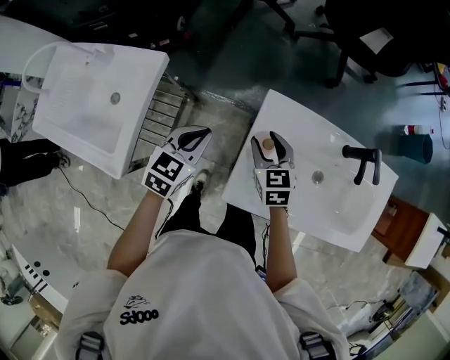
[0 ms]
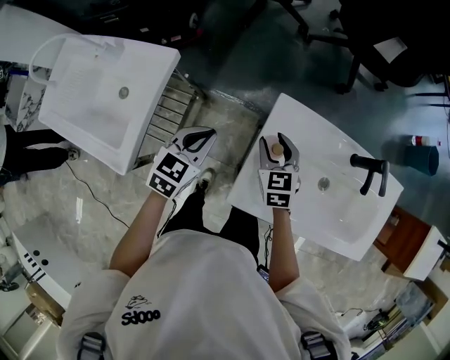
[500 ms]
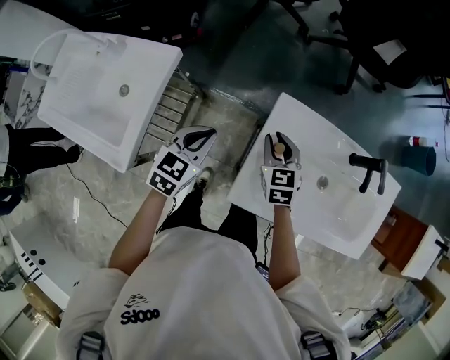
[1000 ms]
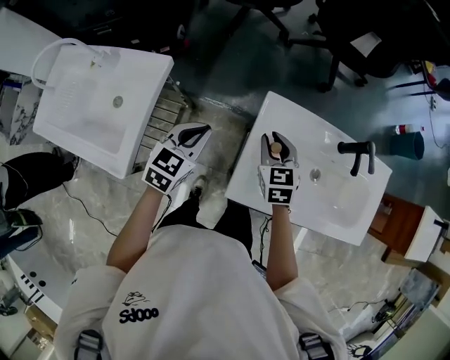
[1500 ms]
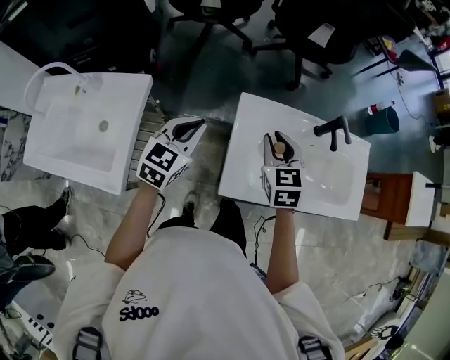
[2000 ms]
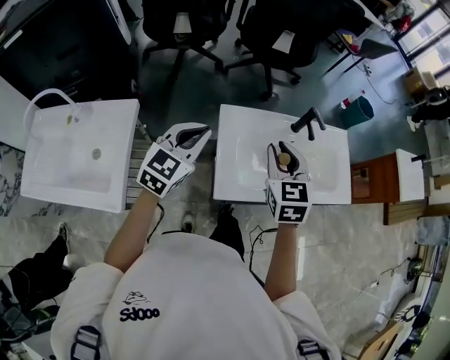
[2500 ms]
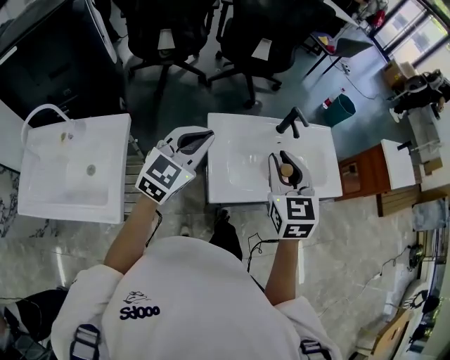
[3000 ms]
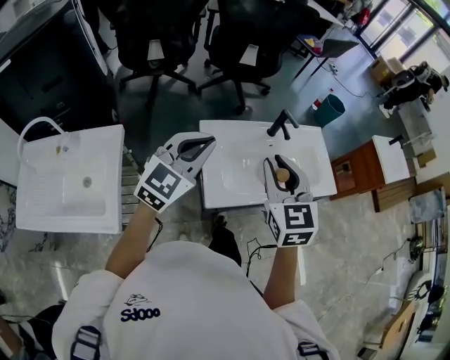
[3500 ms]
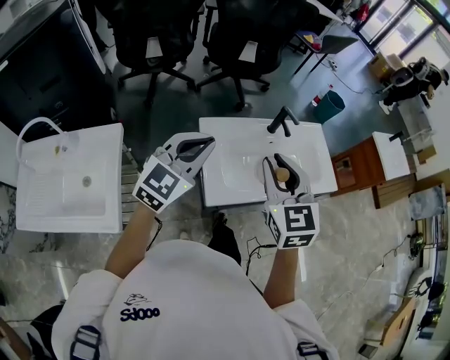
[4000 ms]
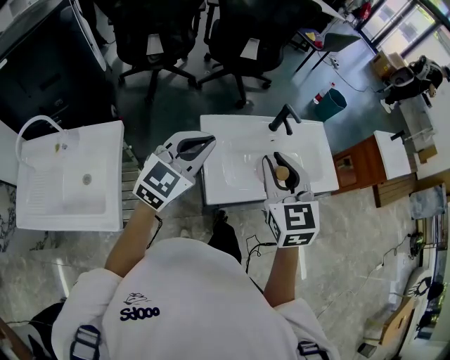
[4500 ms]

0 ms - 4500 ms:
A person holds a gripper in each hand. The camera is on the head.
0 ms - 2000 ms: The right gripper moves upward and to the right, approximately 15 cm, and closes. The left gripper is displaced upward by approximately 10 cm.
2000 ms - 4500 ms: The left gripper goes approximately 20 cm upward and to the right, and rotates about 30 degrees; the right gripper is displaced upward, backward and to the right by approximately 20 cm.

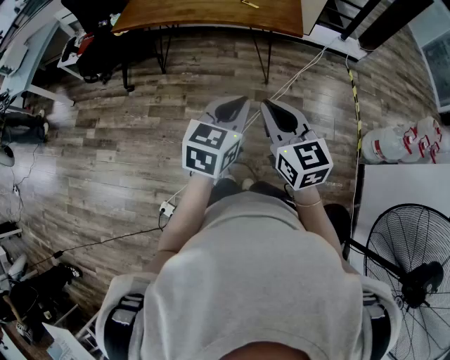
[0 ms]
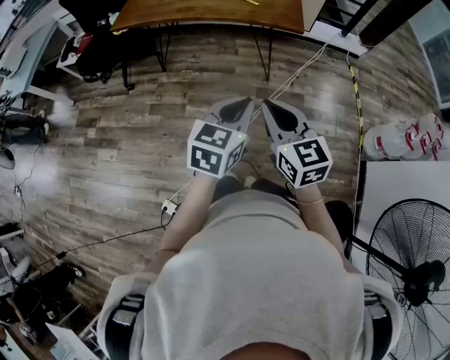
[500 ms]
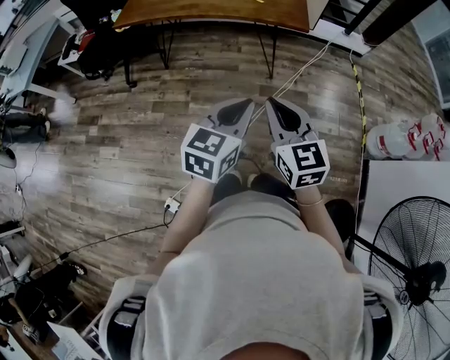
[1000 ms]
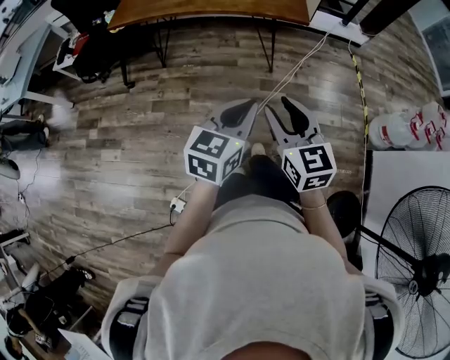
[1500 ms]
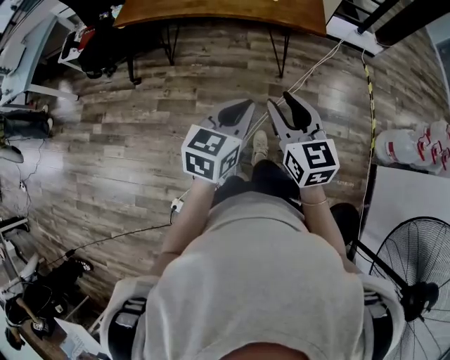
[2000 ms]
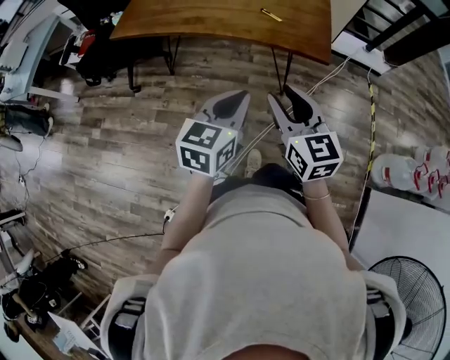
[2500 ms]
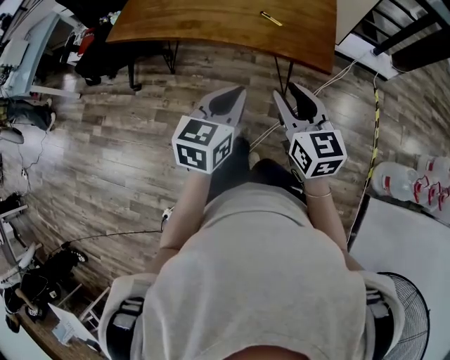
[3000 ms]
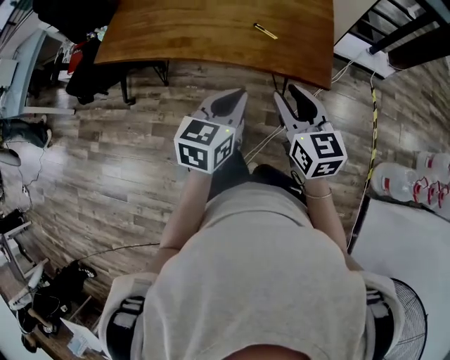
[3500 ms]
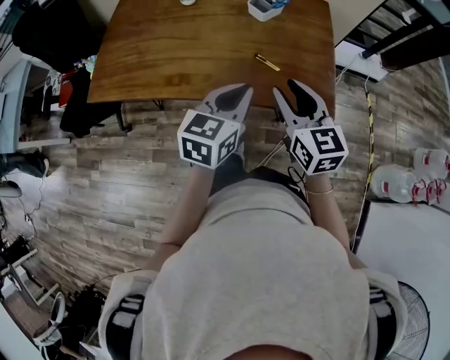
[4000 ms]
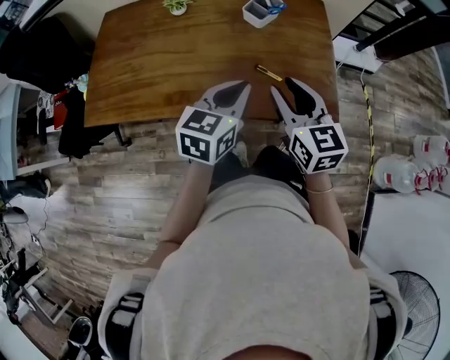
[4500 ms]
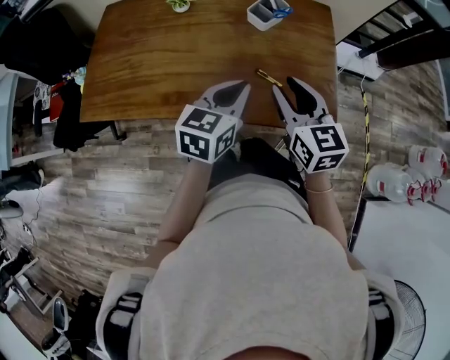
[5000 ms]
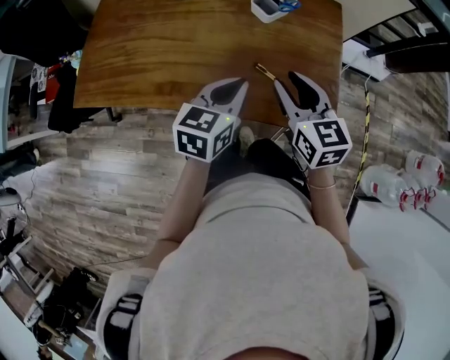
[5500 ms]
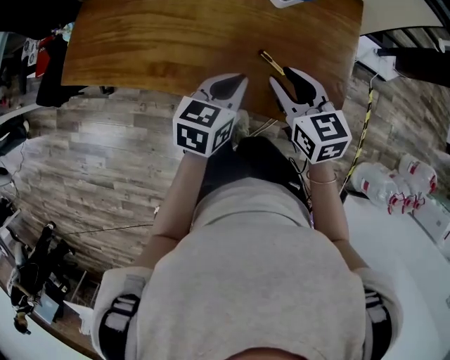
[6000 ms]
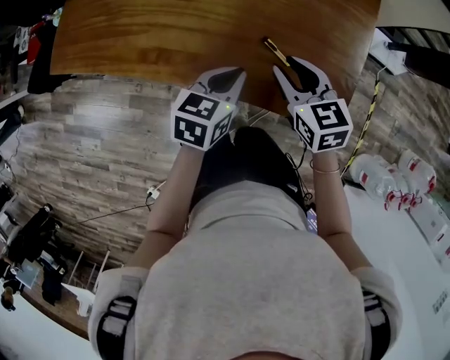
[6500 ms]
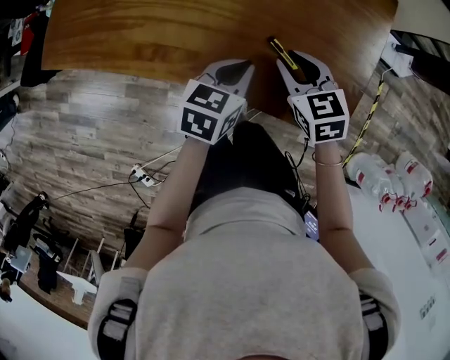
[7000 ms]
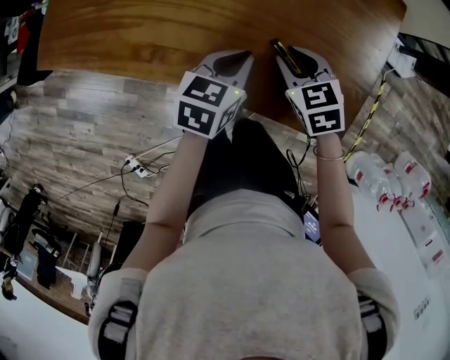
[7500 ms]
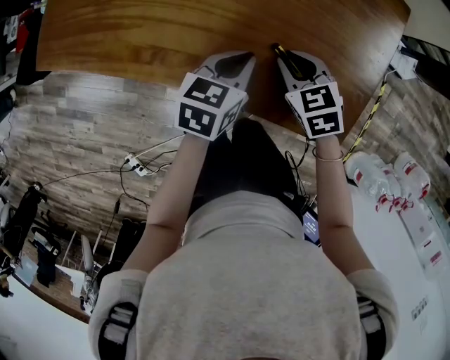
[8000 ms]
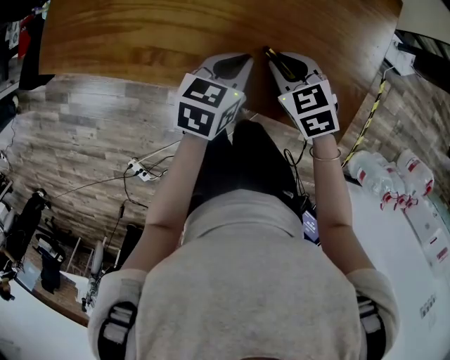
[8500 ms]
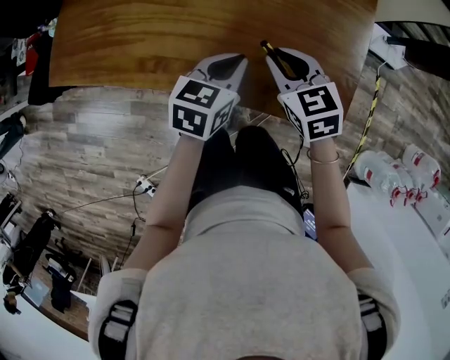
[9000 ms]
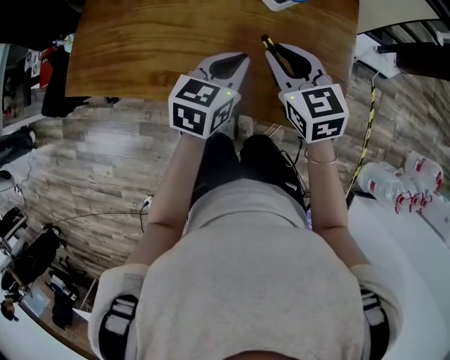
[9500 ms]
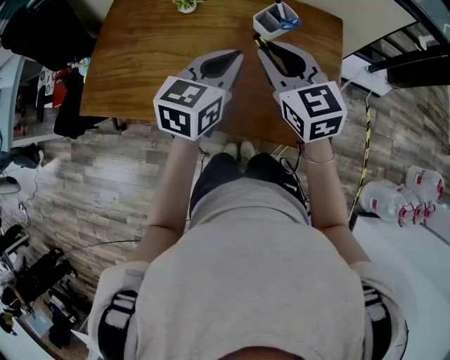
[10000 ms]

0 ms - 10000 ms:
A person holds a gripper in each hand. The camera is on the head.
0 ms - 2000 ms: The right gripper moves forward, roughly 10 cm, and opens up. Meanwhile the left gripper moves forward and to the left, about 10 cm.
2000 ms - 4000 ms: Both grippers are carried forward, approximately 40 cm.
4000 ms - 6000 ms: Both grippers travel together forward and downward, some 15 cm. The right gripper swivels about 20 degrees.
6000 ms - 8000 ms: The right gripper travels downward by approximately 15 cm, and rotates approximately 30 degrees. The left gripper travels downward and forward by about 10 cm.
8000 ms - 10000 ms: Both grippers move upward, roughly 25 cm. The right gripper tilts its fingers roughly 40 degrees upward. The left gripper turns by some 30 degrees.

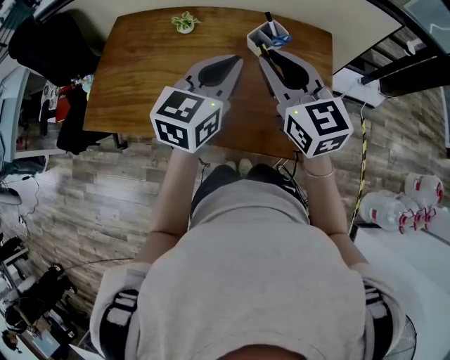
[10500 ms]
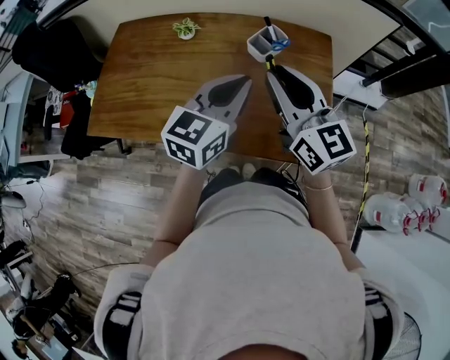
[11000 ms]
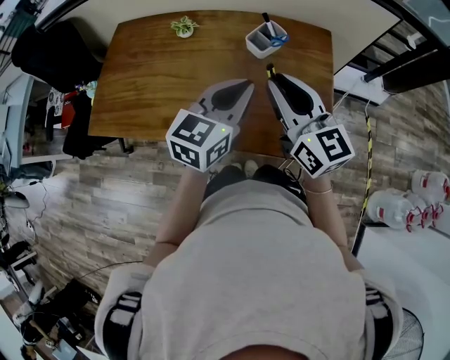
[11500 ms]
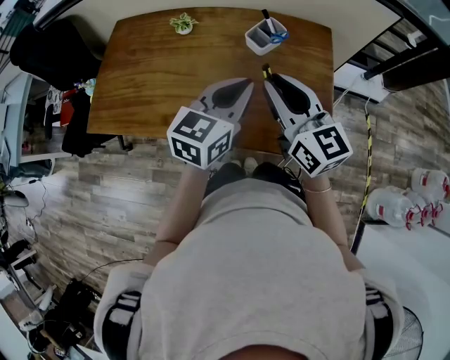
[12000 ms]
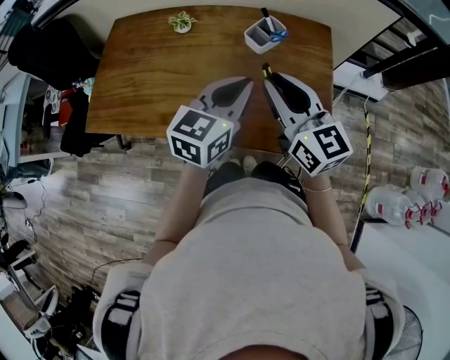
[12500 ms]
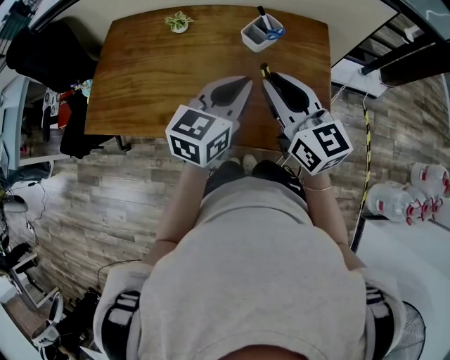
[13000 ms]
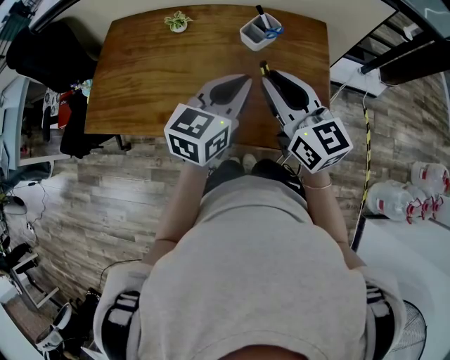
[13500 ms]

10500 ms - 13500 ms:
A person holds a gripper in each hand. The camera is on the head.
10500 ms - 12000 ms: The right gripper changes place by roughly 5 cm; the left gripper ends up some 5 cm from where it was.
12000 ms - 13500 ms: Both grippers stay put.

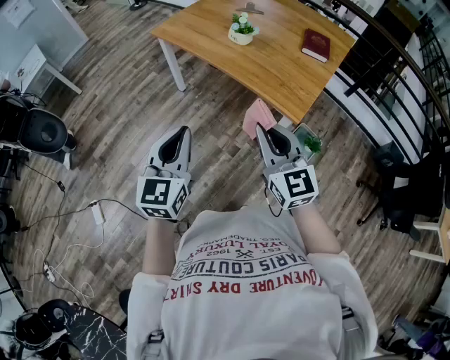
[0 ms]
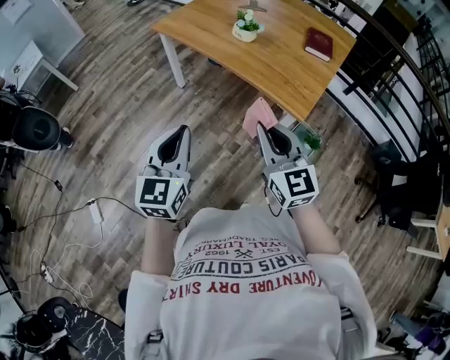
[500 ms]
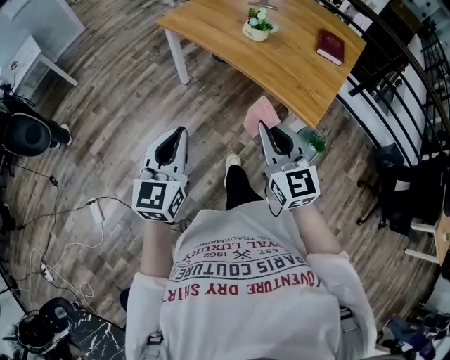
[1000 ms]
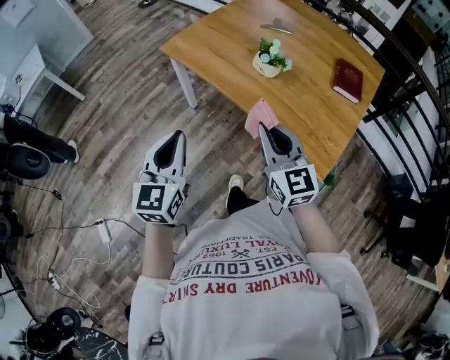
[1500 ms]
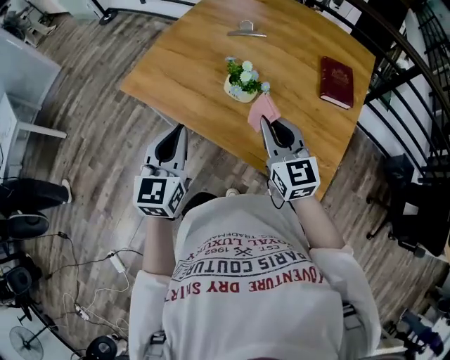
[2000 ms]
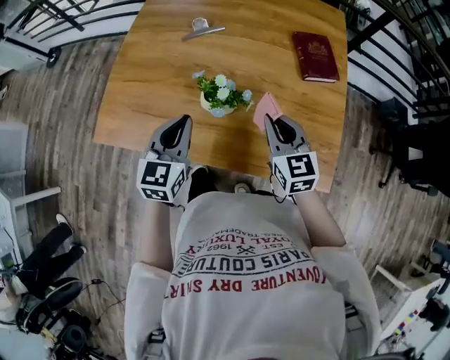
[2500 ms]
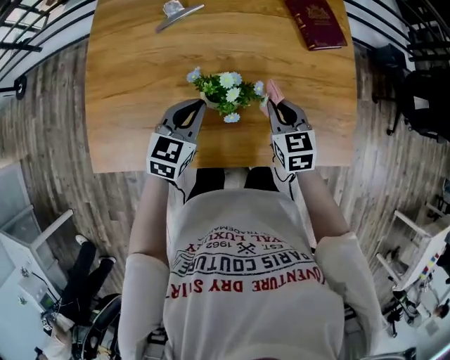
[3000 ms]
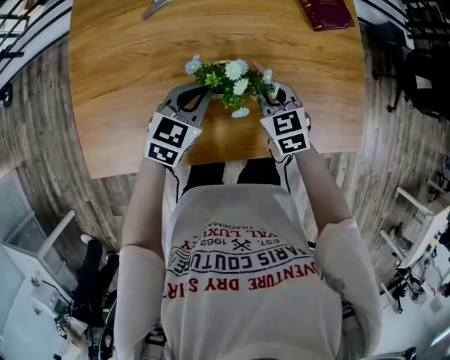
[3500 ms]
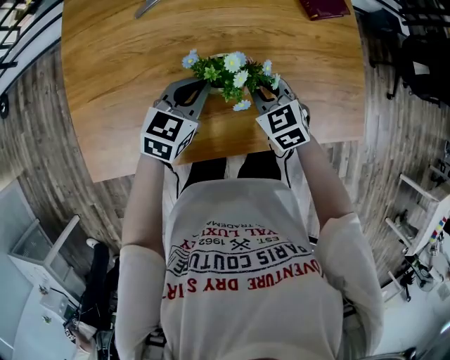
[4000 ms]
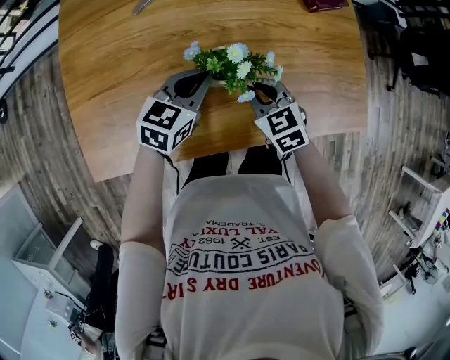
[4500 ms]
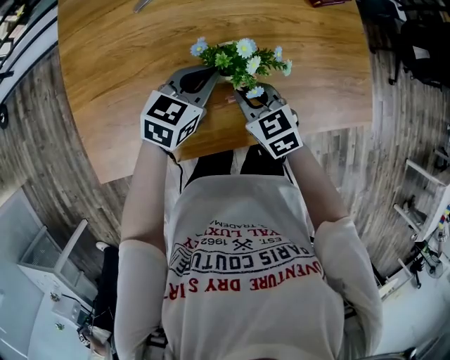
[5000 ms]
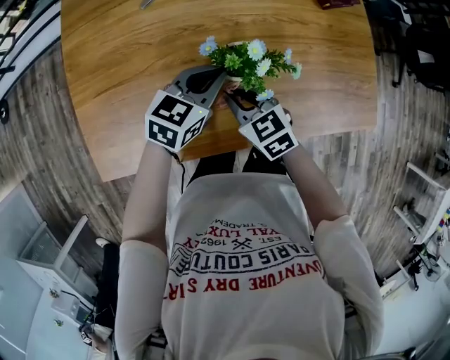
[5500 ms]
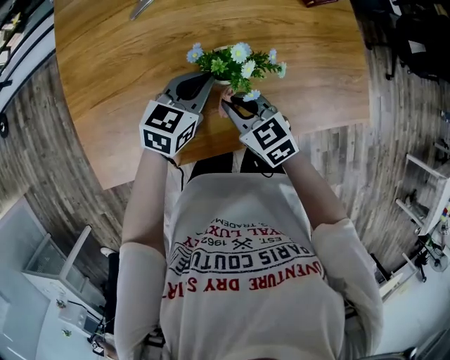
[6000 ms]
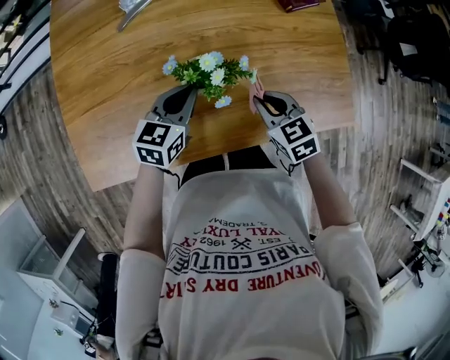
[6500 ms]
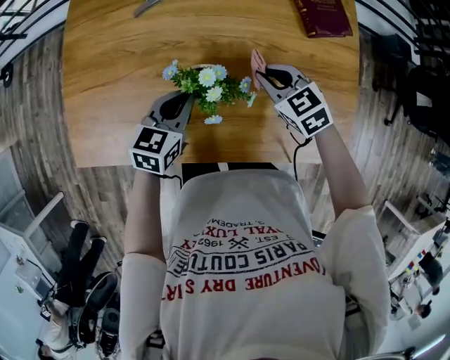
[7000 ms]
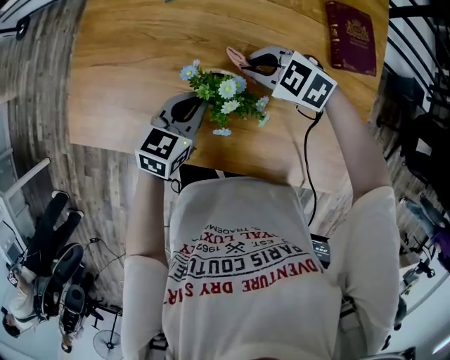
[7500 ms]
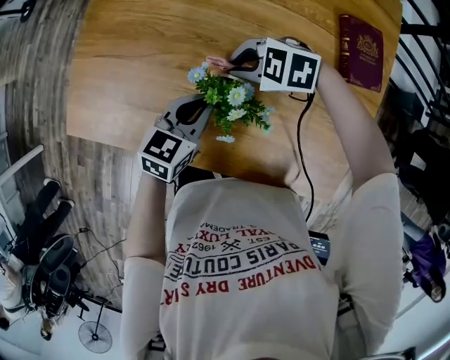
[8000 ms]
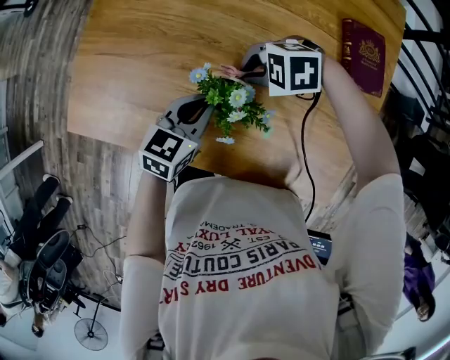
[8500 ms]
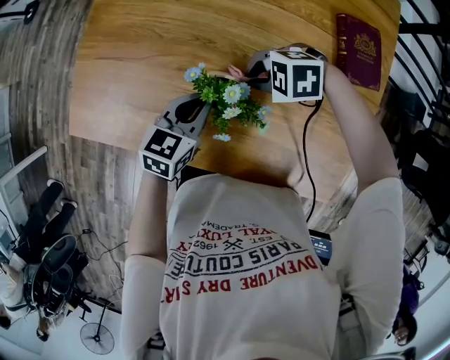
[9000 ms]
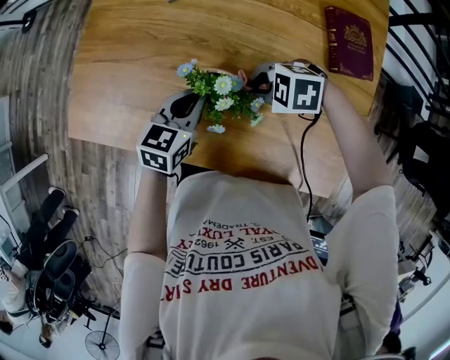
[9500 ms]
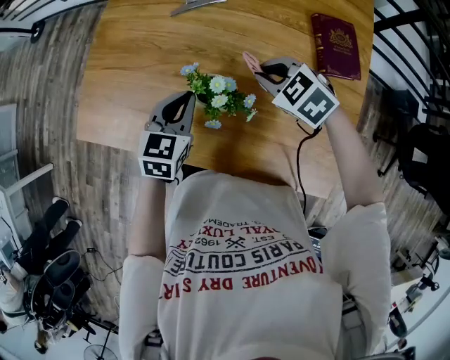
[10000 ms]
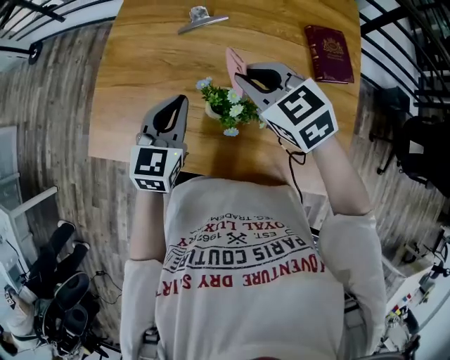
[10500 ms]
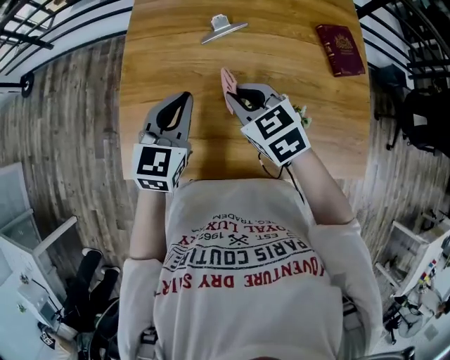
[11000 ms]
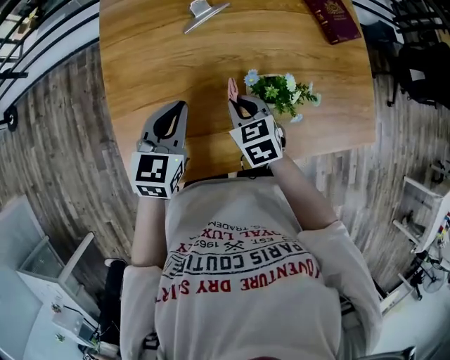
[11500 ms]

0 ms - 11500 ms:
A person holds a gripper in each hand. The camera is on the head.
0 ms - 2000 ms: The pair of grippers is taken forward, approximately 40 cm.
2000 ms - 4000 ms: The left gripper changes place by some 30 cm, and changes its angle by roughly 60 degrees, while the right gripper shifts roughly 20 cm downward, and tips its fingers downward by approximately 30 degrees.
4000 ms - 6000 ms: The right gripper shifts about 10 cm to the left and backward.
6000 ms - 7500 ms: The left gripper swivels approximately 30 degrees; the right gripper moves approximately 15 cm, and swivels roughly 60 degrees.
7500 ms - 9500 ms: The right gripper ends up about 5 cm from where it was, and turns by some 30 degrees.
9500 ms - 11500 ms: The right gripper travels upward and back again, approximately 20 cm each way, and changes its angle by roughly 90 degrees; the left gripper moves approximately 20 cm.
